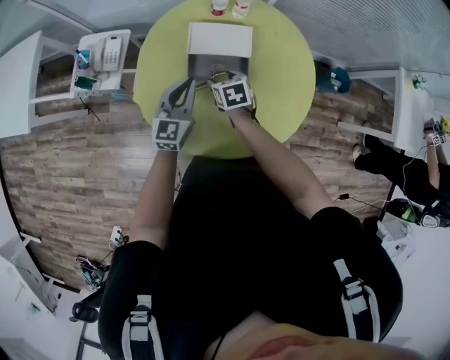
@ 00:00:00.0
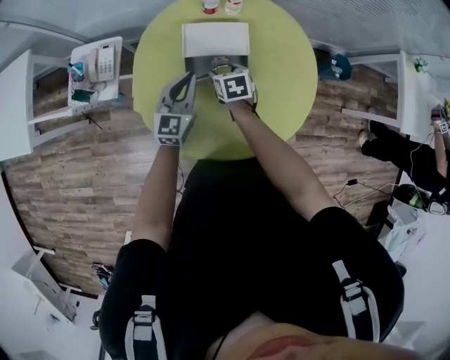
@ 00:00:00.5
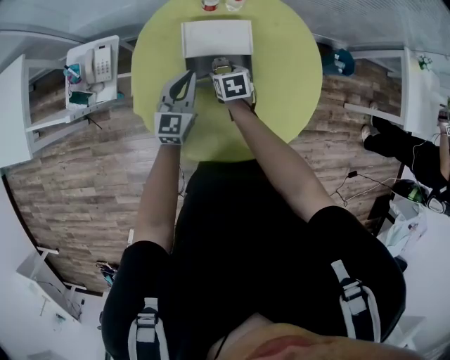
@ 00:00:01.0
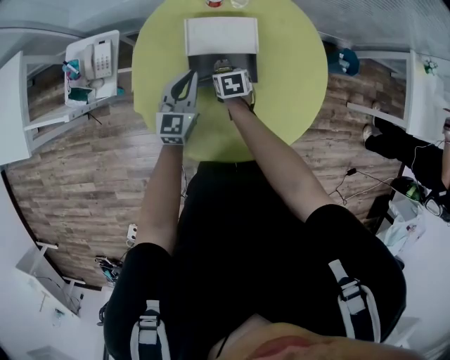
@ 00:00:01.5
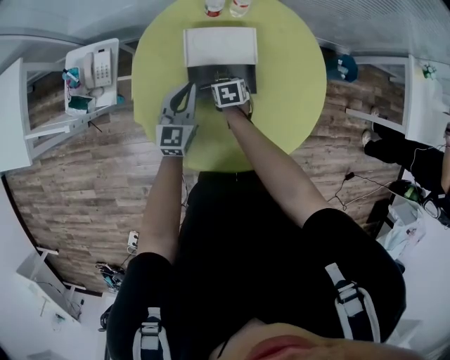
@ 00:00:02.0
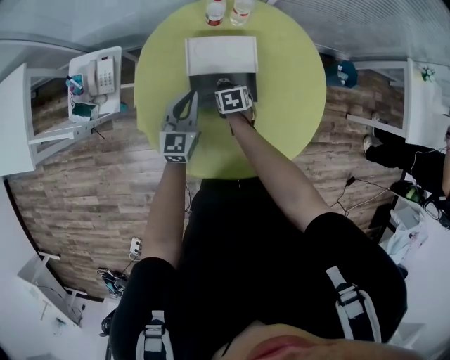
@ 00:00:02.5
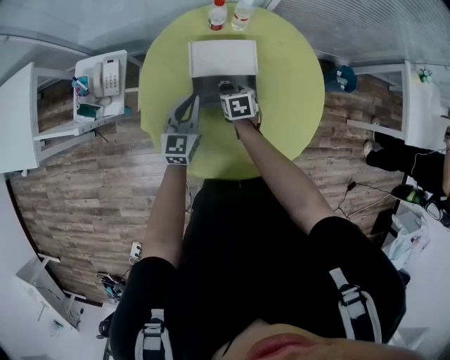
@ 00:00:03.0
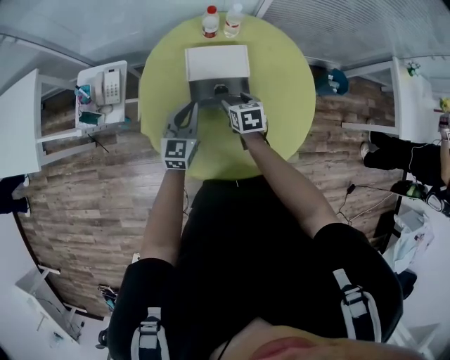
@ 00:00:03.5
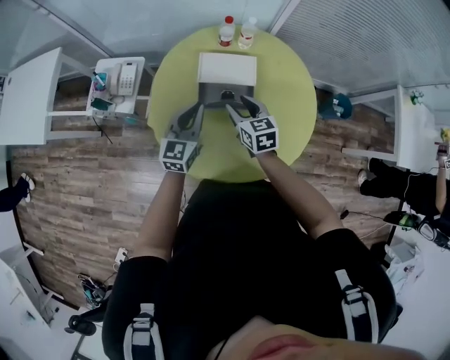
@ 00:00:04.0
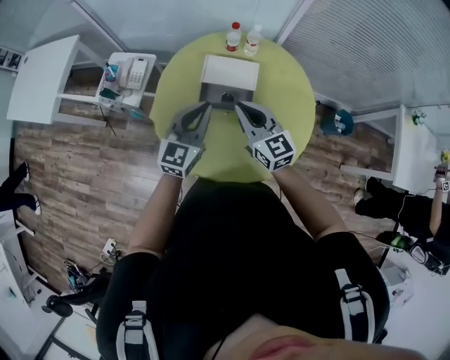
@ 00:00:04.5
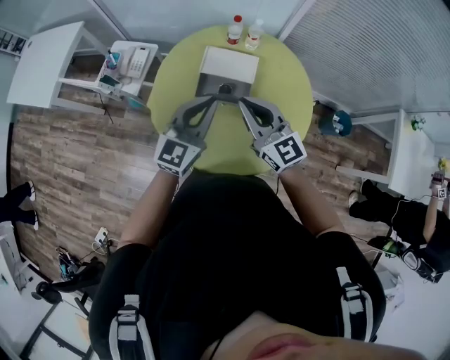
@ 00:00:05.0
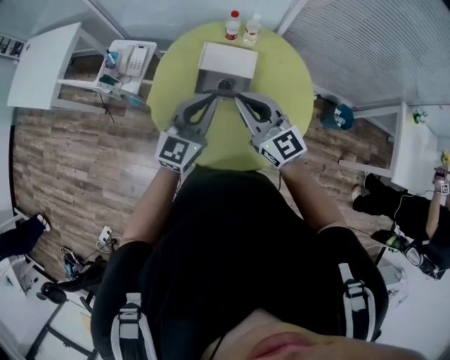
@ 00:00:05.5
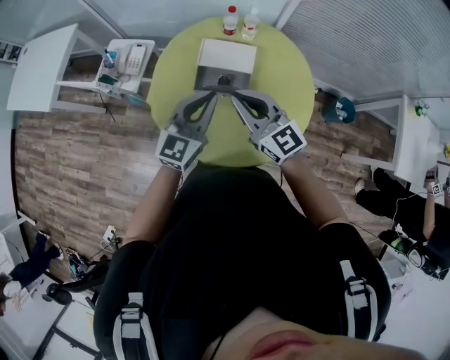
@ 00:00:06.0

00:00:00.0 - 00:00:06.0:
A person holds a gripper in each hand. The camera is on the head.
00:00:00.0 - 00:00:02.0: The left gripper goes some 10 cm downward and forward. The right gripper moves downward, approximately 15 cm.
00:00:02.0 - 00:00:04.0: The right gripper travels upward by some 25 cm, and tilts its fingers some 30 degrees upward; the left gripper heads upward and backward, covering roughly 15 cm.
00:00:04.0 - 00:00:06.0: The right gripper travels upward and backward by approximately 20 cm, points its fingers approximately 30 degrees further upward, and closes up. Meanwhile the left gripper moves upward, backward and to the right, approximately 15 cm.

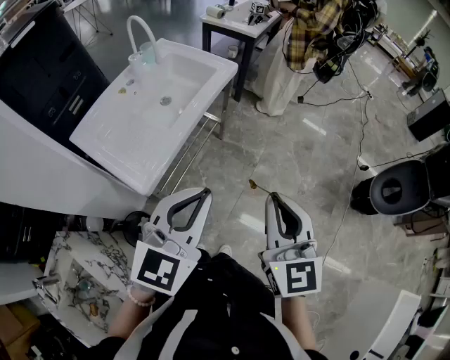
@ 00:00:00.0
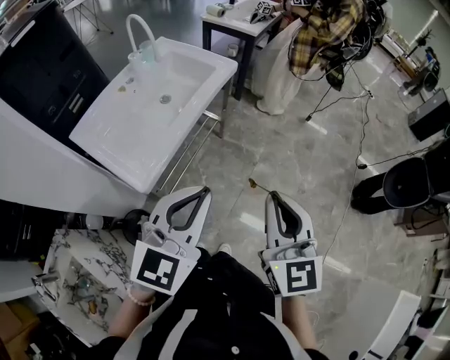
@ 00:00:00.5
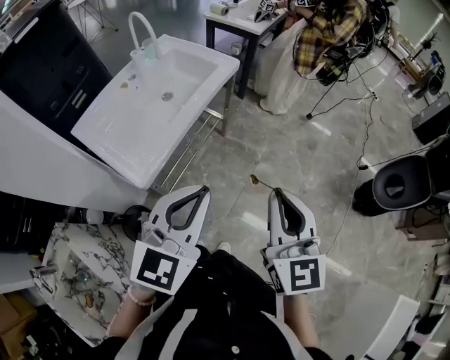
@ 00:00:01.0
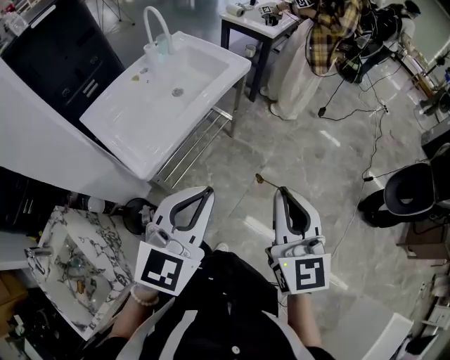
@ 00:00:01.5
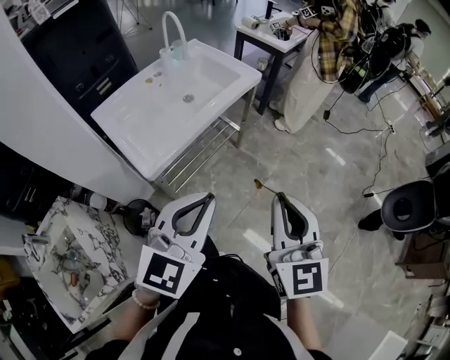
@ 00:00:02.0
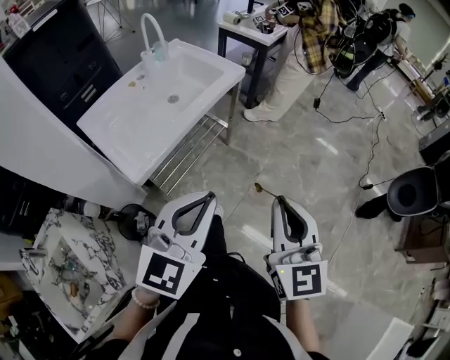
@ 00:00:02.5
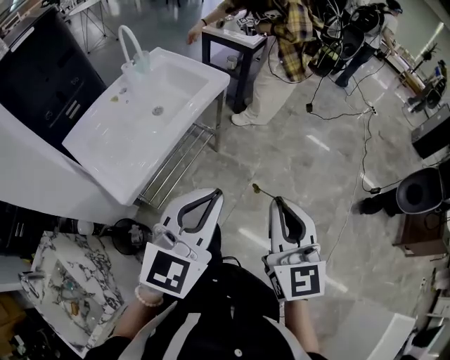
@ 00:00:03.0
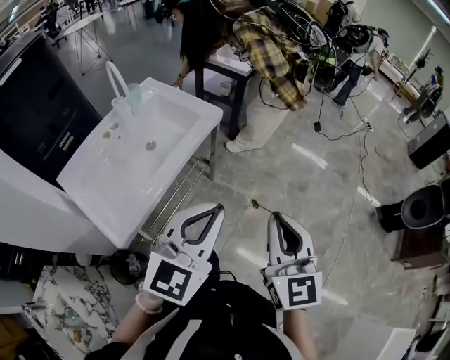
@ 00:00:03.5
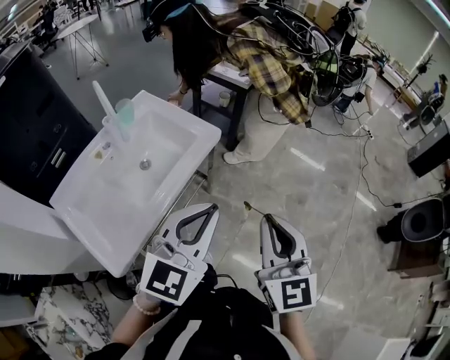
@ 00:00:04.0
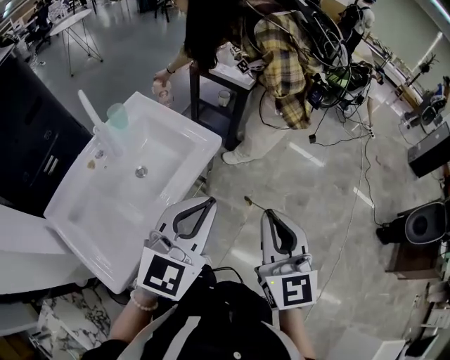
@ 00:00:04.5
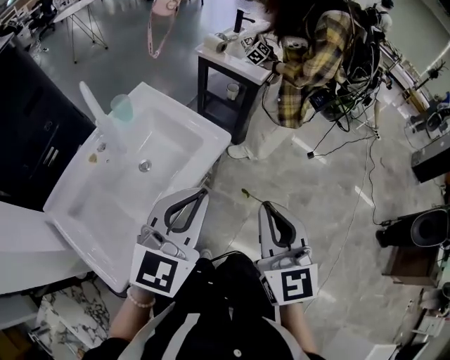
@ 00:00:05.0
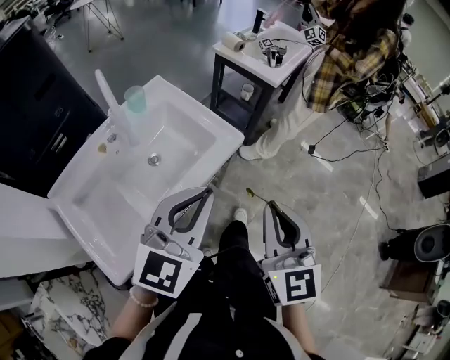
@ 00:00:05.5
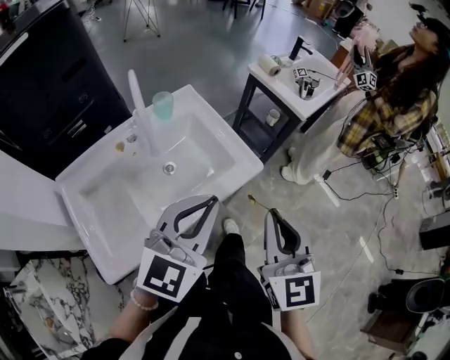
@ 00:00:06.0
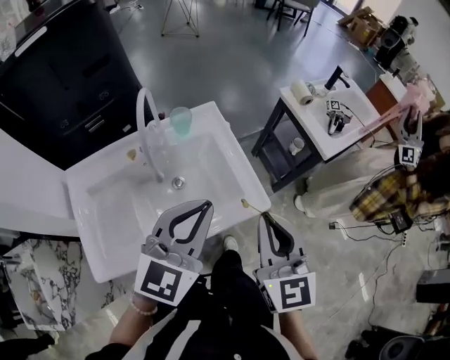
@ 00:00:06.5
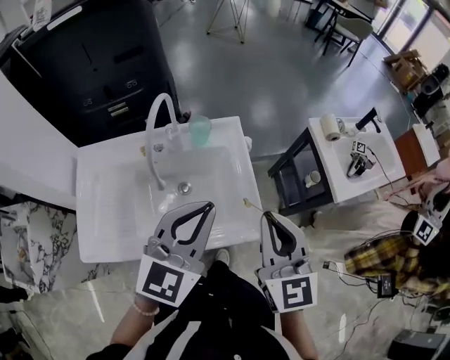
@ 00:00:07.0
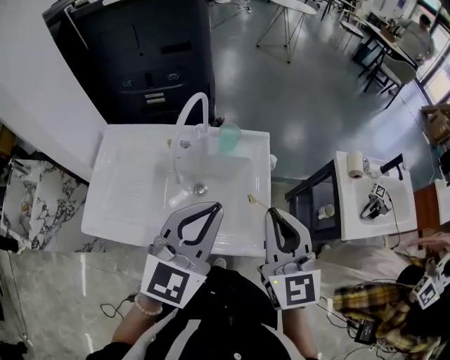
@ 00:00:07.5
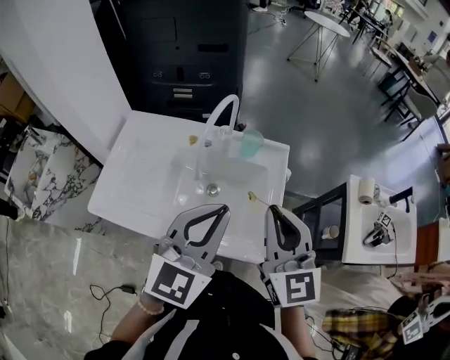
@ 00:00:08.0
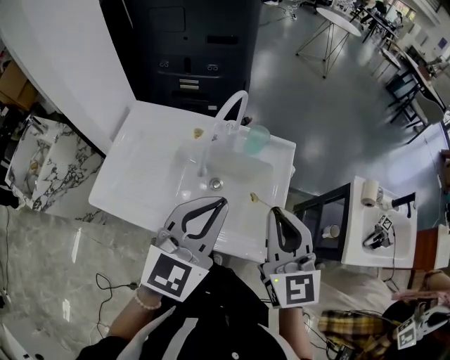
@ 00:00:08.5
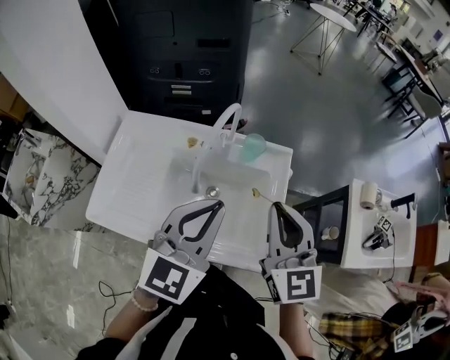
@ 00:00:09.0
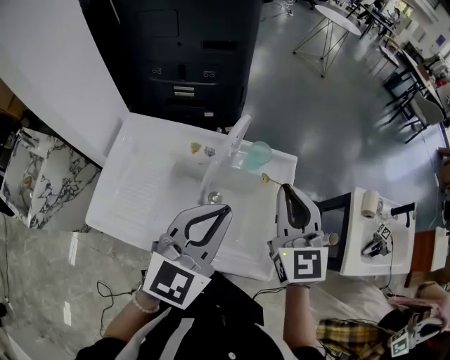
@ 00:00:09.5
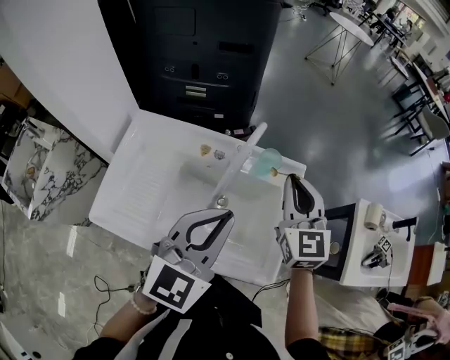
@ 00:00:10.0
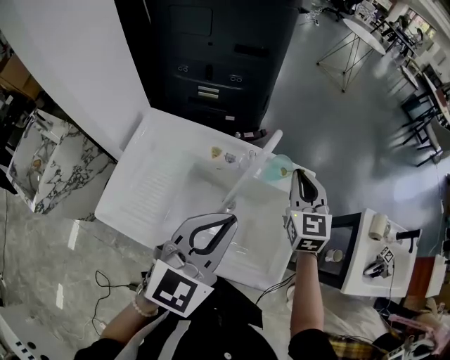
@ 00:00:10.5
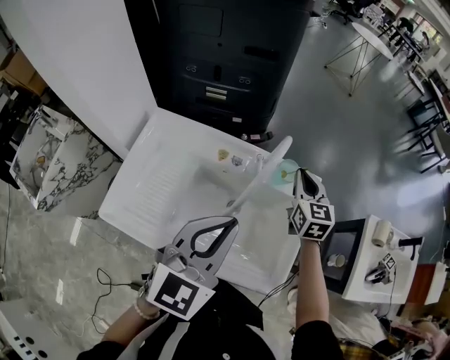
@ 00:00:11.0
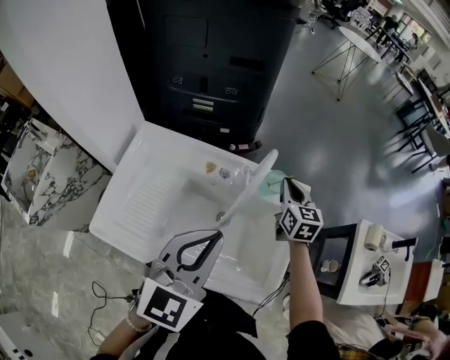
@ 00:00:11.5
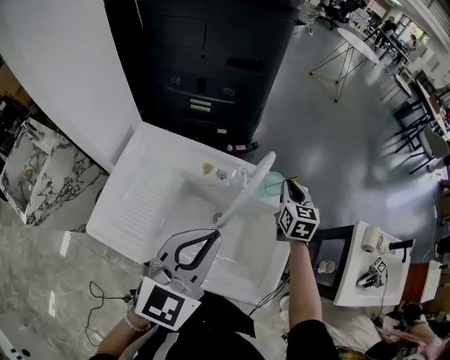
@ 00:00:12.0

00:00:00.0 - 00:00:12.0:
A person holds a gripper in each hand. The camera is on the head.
00:00:00.0 - 00:00:02.0: The grippers move only a little.
00:00:02.0 - 00:00:04.0: The two grippers go roughly 25 cm forward.
00:00:04.0 - 00:00:06.0: The two grippers go approximately 20 cm forward and to the left.
00:00:06.0 - 00:00:08.0: The left gripper moves about 15 cm, and swivels about 50 degrees, while the right gripper ends up some 25 cm from where it was, and rotates about 50 degrees.
00:00:08.0 - 00:00:10.0: The right gripper goes roughly 20 cm forward, while the left gripper is displaced forward and to the left by roughly 10 cm.
00:00:10.0 - 00:00:12.0: The right gripper moves downward and forward, about 20 cm, and changes its angle by some 20 degrees.

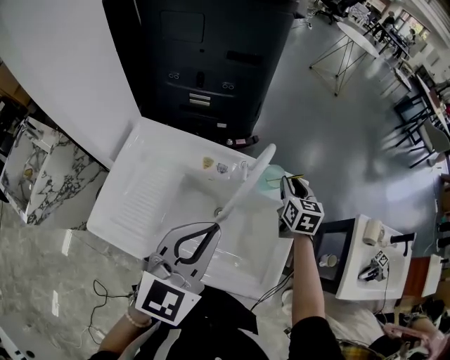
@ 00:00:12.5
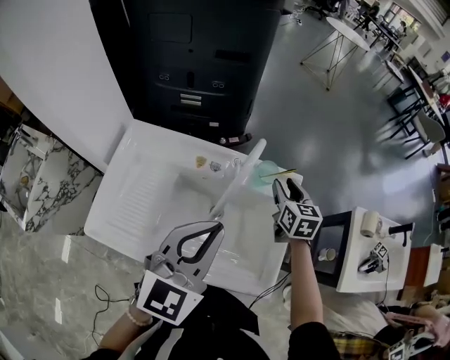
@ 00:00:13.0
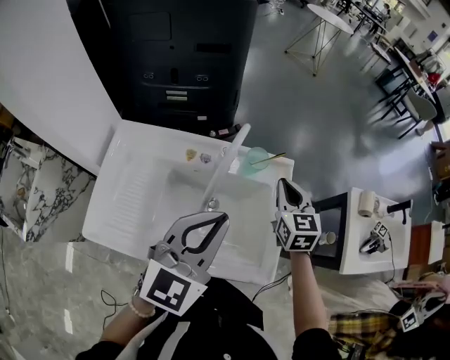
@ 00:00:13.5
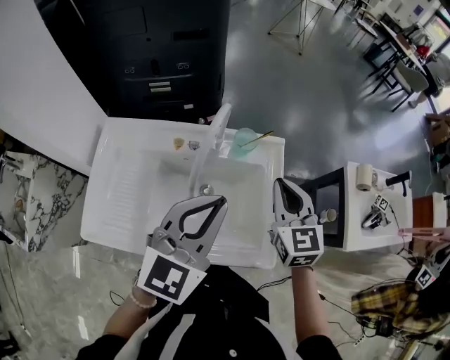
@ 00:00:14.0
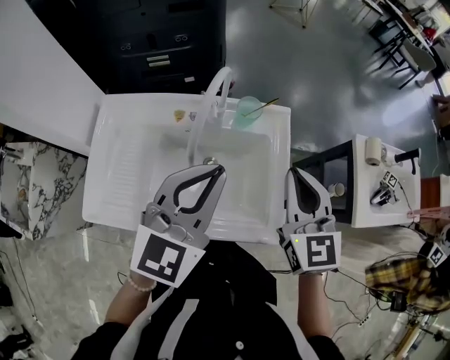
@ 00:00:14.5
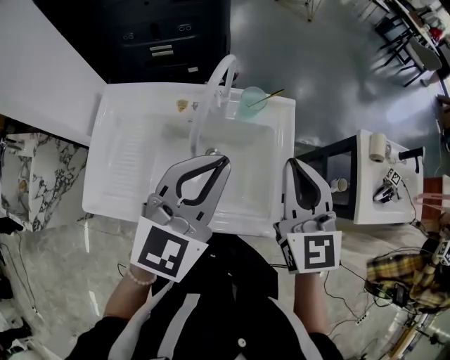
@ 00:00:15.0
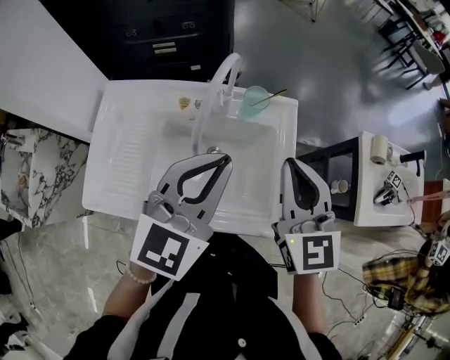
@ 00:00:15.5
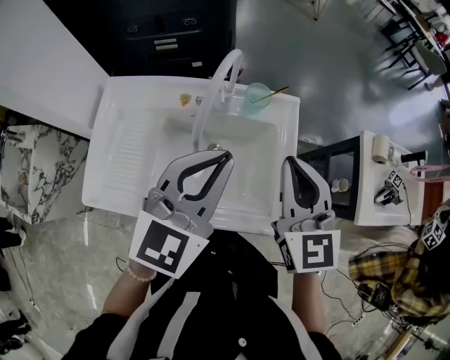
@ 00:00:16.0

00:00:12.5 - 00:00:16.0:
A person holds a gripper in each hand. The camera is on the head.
00:00:12.5 - 00:00:14.5: The right gripper shifts about 25 cm backward and upward, and closes up; the left gripper shifts roughly 5 cm to the right.
00:00:14.5 - 00:00:16.0: The grippers move only a little.

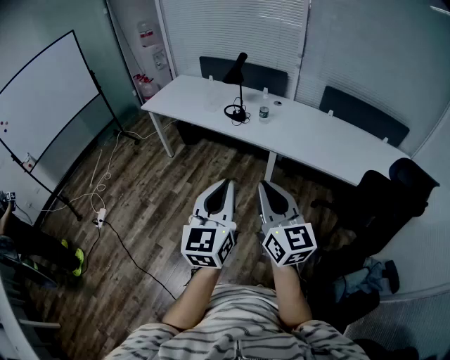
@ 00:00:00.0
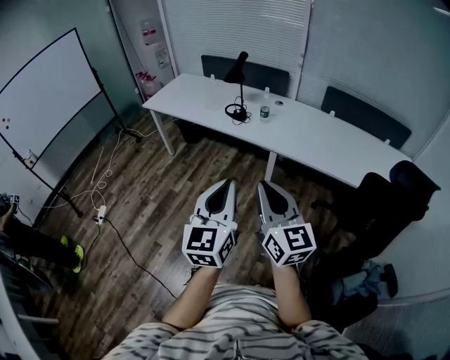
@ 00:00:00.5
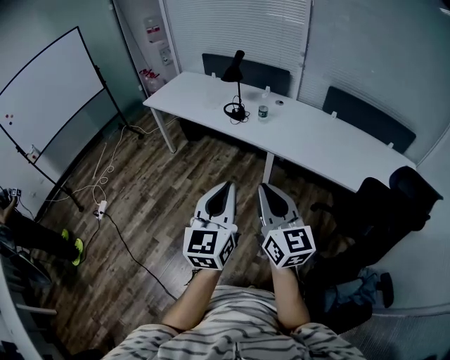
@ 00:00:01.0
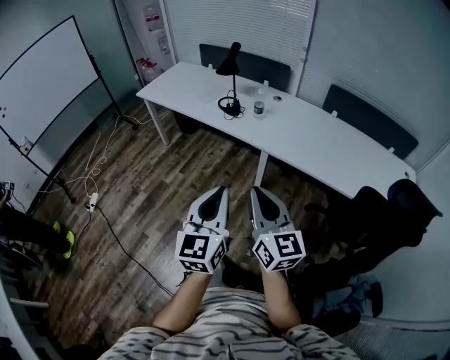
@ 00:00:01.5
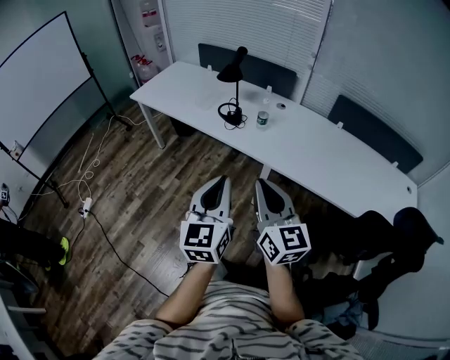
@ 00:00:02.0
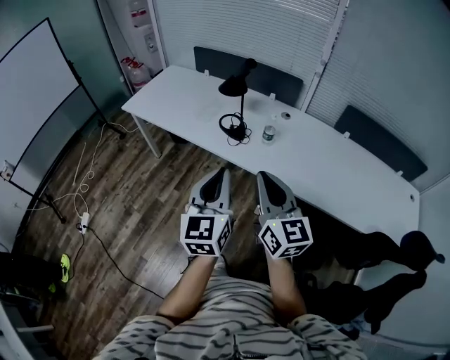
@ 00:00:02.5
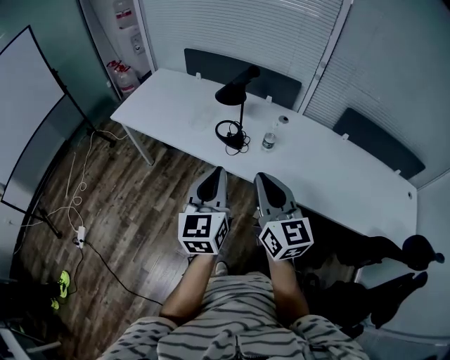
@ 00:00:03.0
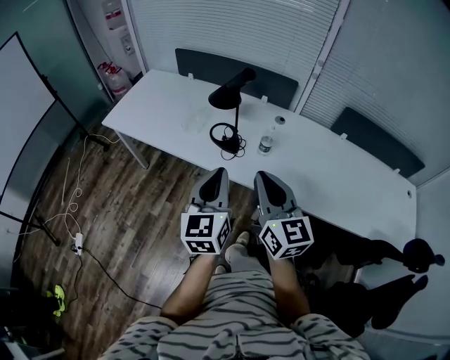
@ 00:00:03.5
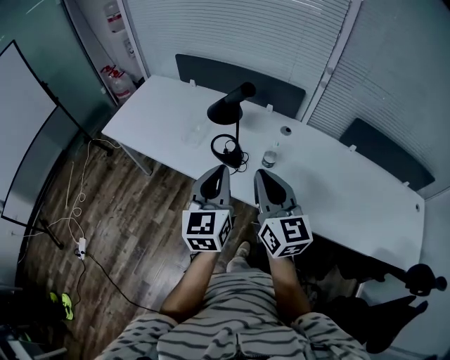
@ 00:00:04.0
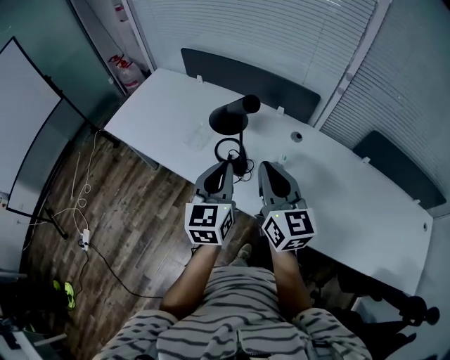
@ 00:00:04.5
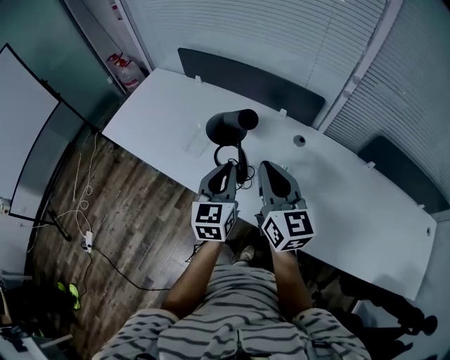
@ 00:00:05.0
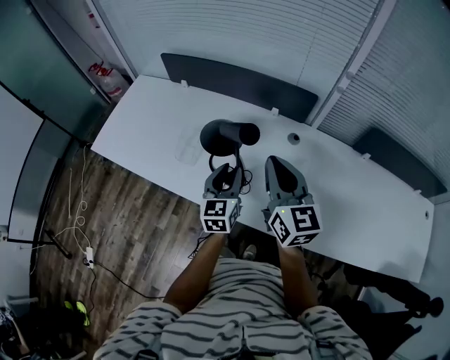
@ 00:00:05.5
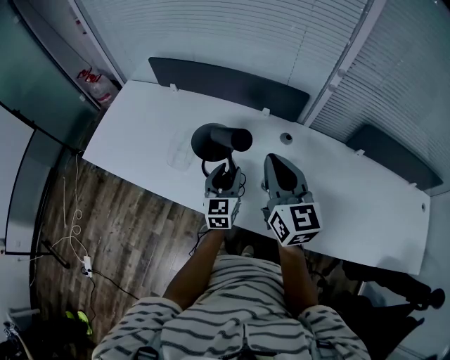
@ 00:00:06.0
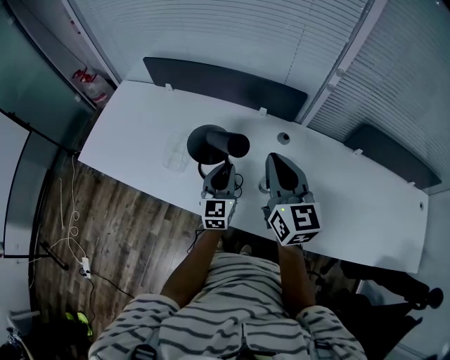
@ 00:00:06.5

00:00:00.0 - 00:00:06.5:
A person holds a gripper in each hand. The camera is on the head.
00:00:00.0 - 00:00:02.0: Both grippers move forward and to the right, approximately 20 cm.
00:00:02.0 - 00:00:04.5: The two grippers travel together, forward, approximately 50 cm.
00:00:04.5 - 00:00:06.5: The right gripper shifts some 10 cm forward, while the left gripper shifts about 20 cm forward and downward, and opens, then closes once more.
